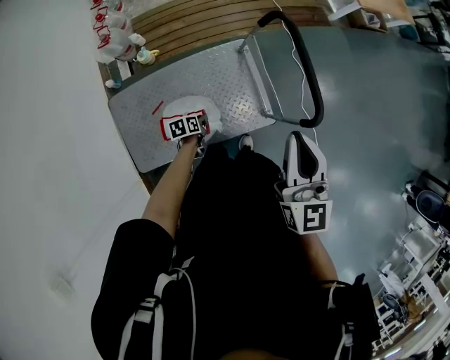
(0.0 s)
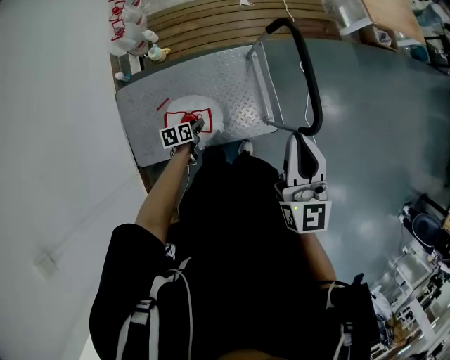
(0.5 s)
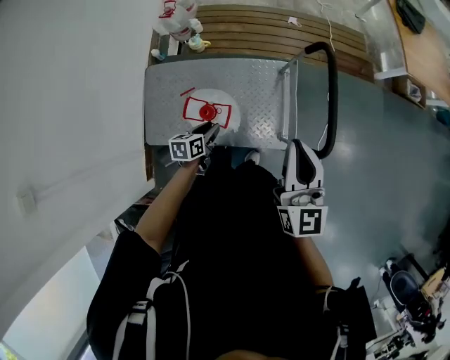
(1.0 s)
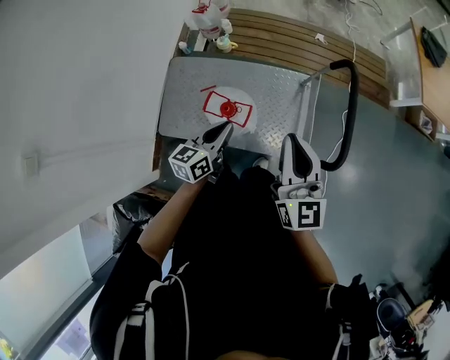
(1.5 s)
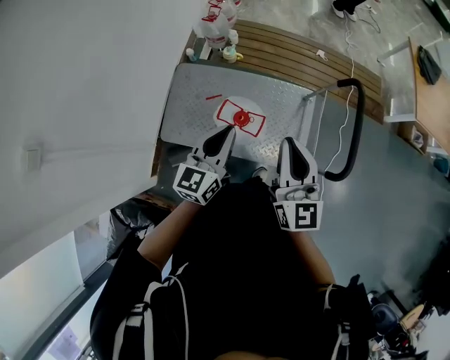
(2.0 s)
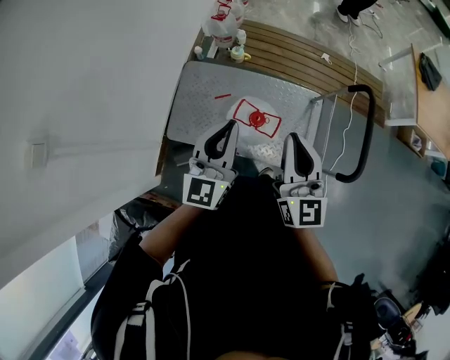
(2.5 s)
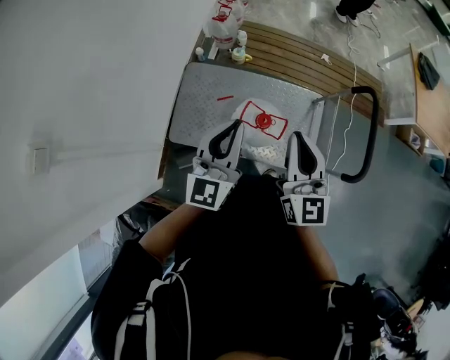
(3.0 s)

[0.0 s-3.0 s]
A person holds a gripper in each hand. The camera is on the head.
0.0 to 1.5 s: The right gripper shifts by roughly 5 cm, and changes its angle by roughly 30 degrees. The left gripper shifts roughly 30 cm upward, and points its fingers approximately 40 degrees further upward.
1.5 to 3.0 s: The right gripper is displaced to the left by approximately 20 cm. The left gripper is displaced to the left and upward by approximately 25 cm, and changes its angle by about 40 degrees.

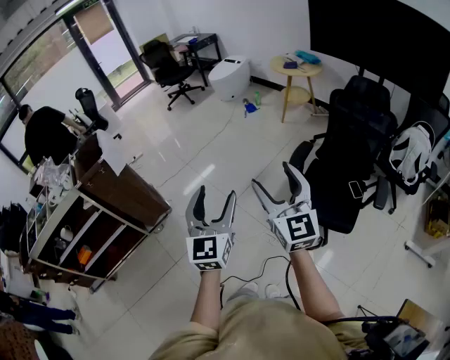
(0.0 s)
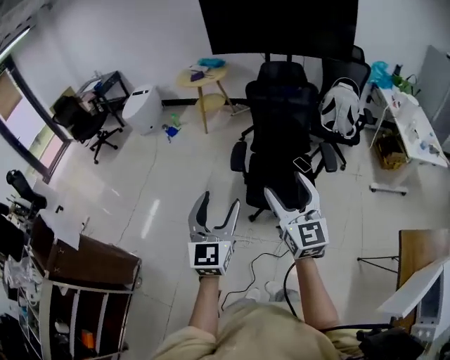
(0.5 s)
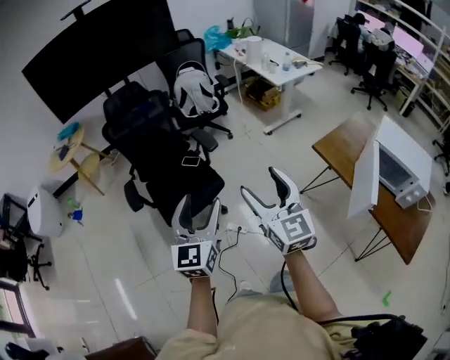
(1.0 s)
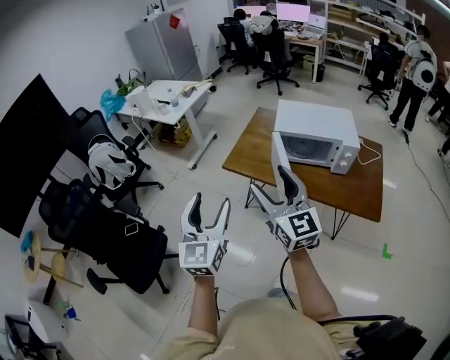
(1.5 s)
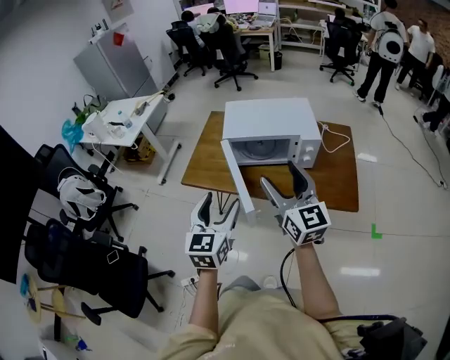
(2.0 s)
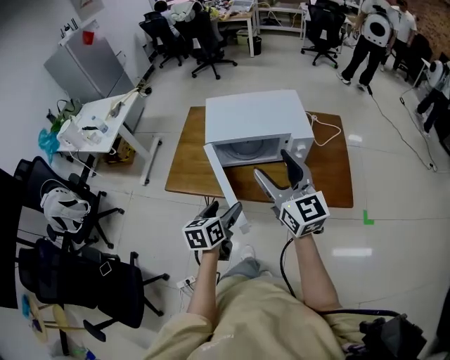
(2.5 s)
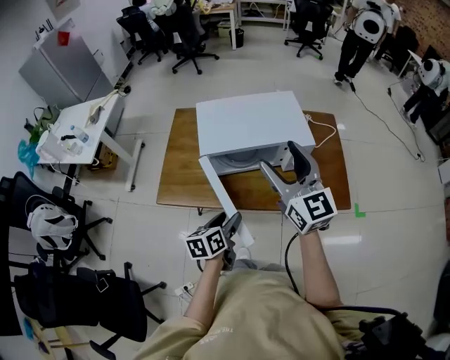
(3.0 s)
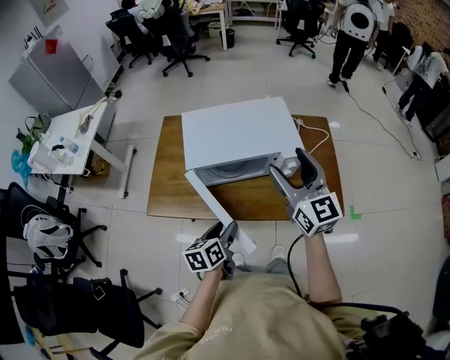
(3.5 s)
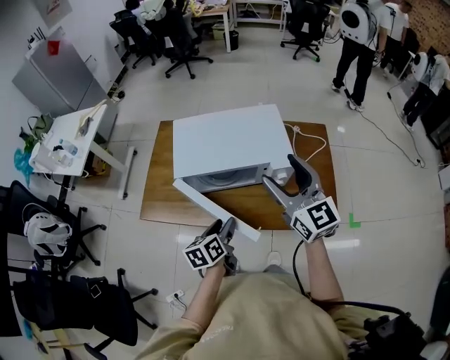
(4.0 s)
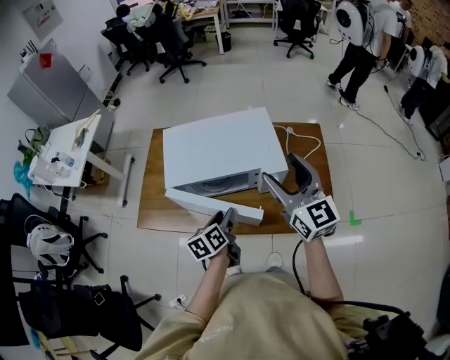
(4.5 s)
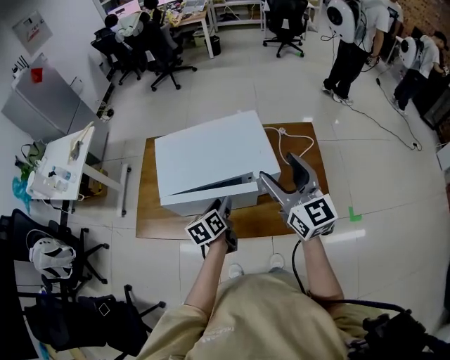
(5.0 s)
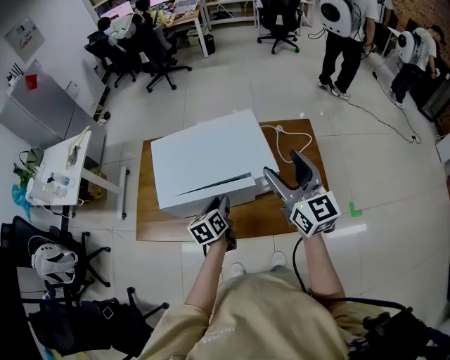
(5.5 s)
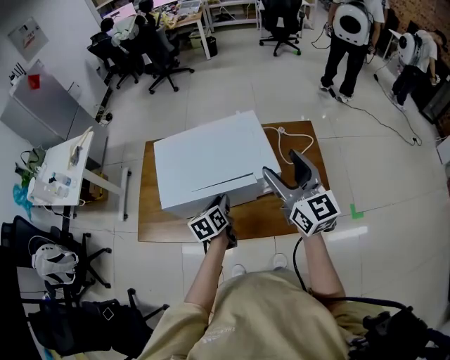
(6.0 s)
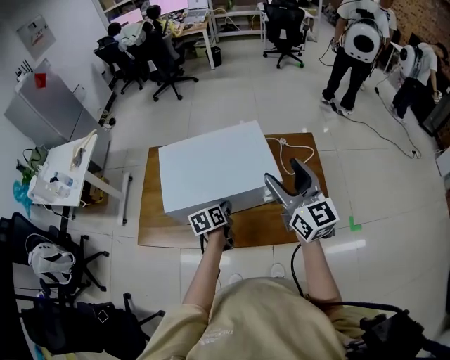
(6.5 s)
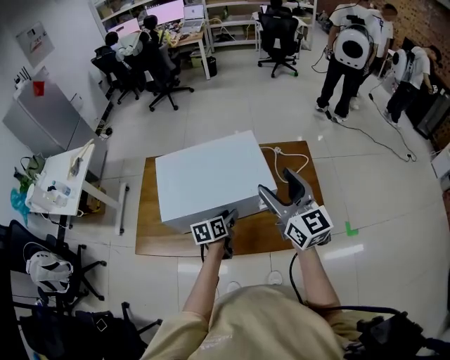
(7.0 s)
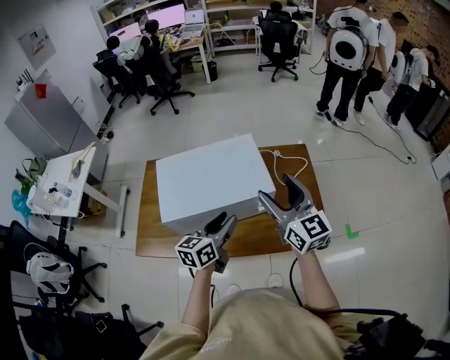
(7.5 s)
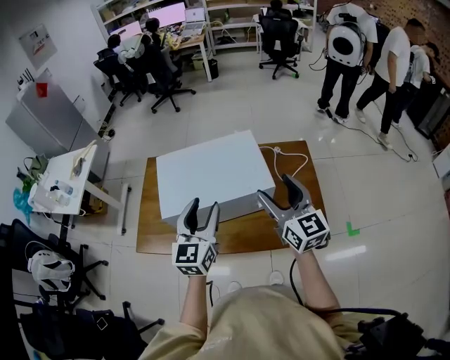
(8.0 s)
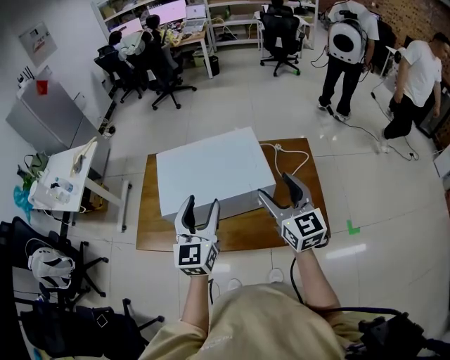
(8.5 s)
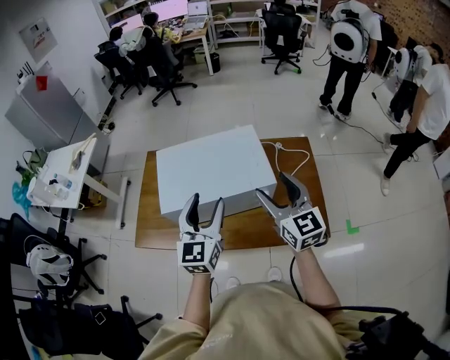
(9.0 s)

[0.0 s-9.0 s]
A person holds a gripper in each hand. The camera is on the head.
0.0 to 2.0 s: The pair of grippers is taken some 80 cm. The left gripper rotates about 110 degrees, while the right gripper swivels about 100 degrees.
2.0 to 4.5 s: The right gripper is displaced forward by some 30 cm. Meanwhile the left gripper moves forward and downward, roughly 40 cm, and rolls counterclockwise, seen from behind, by approximately 40 degrees.
4.5 to 7.0 s: The left gripper shifts about 10 cm forward and downward, and closes and opens again.
7.0 to 9.0 s: The left gripper shifts some 25 cm upward, and angles its fingers upward, by approximately 30 degrees.

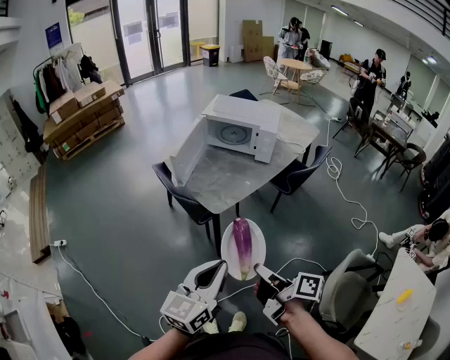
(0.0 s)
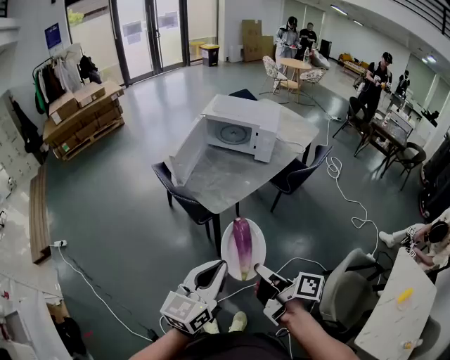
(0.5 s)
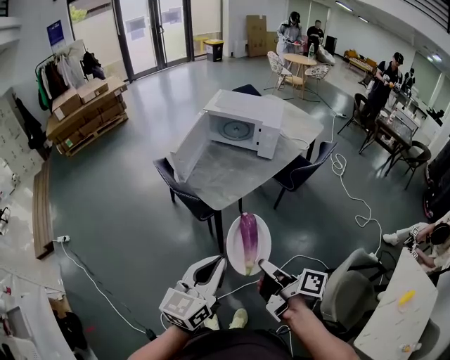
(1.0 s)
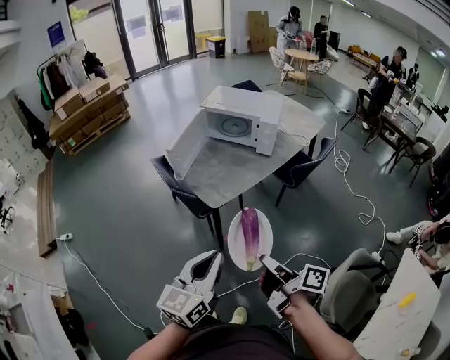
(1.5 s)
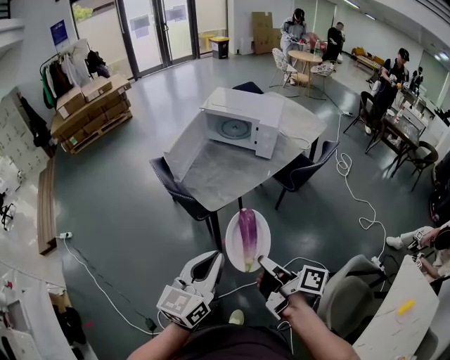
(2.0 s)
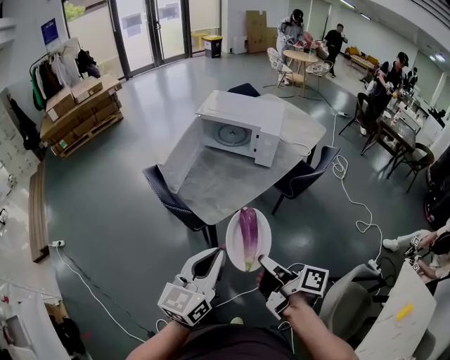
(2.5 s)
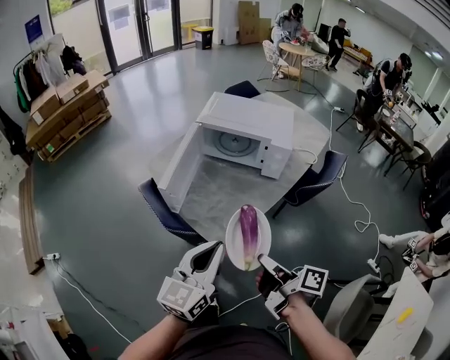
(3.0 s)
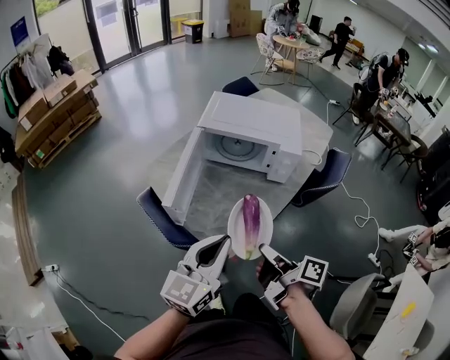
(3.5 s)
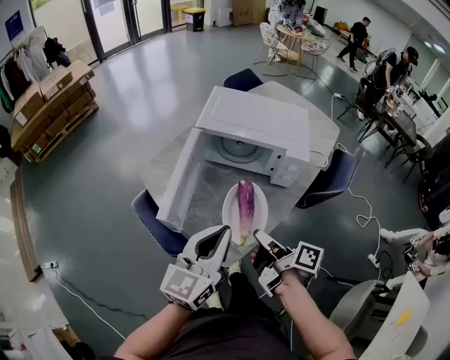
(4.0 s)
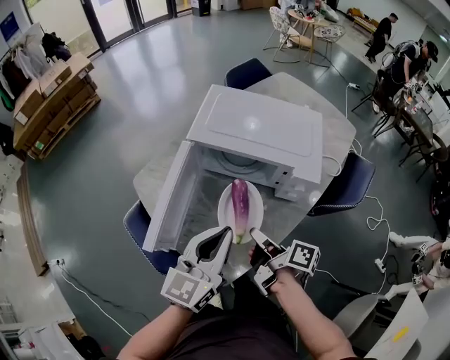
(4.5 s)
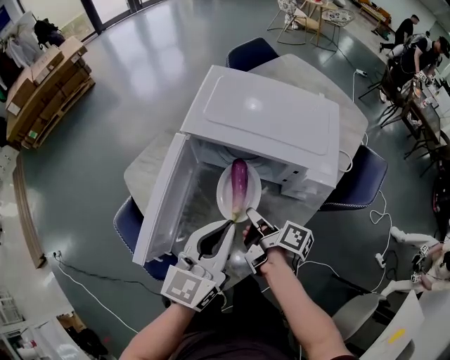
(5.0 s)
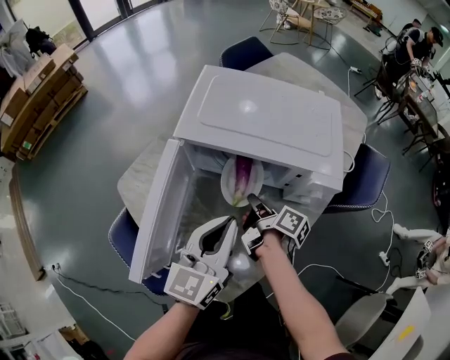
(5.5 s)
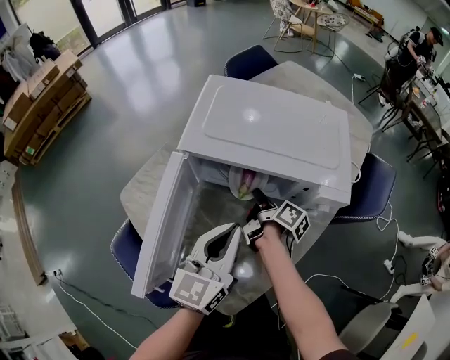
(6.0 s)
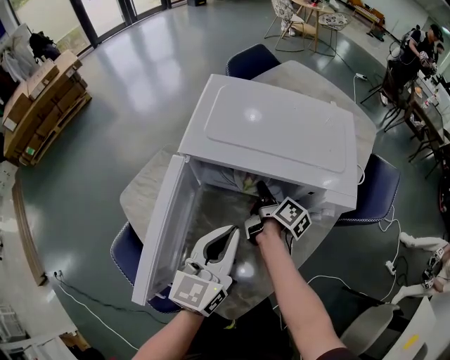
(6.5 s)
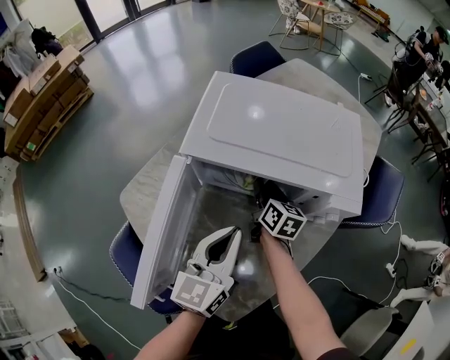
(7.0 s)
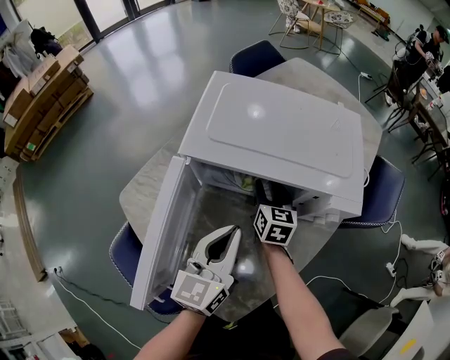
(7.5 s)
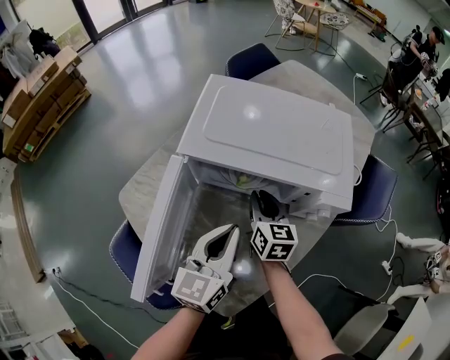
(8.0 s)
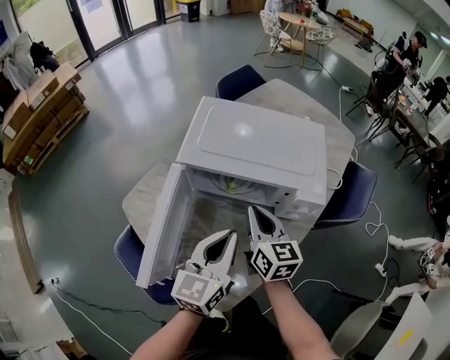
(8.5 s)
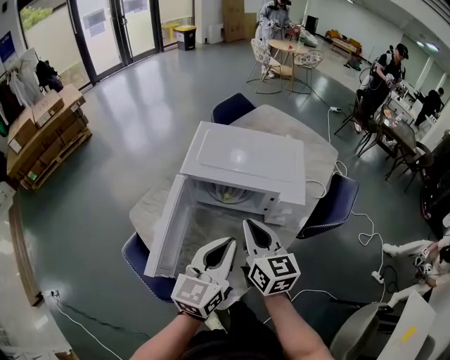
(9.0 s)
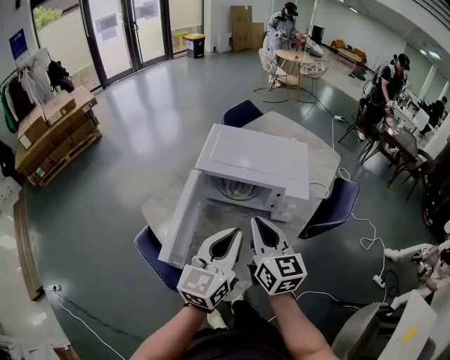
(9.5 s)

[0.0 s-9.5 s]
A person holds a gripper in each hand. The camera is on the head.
0.0 to 2.0 s: The right gripper moves to the right, about 5 cm. Meanwhile the left gripper moves approximately 5 cm.
2.0 to 4.0 s: The pair of grippers is taken forward, approximately 40 cm.
4.0 to 5.5 s: The grippers both shift forward and downward by roughly 25 cm.
5.5 to 7.5 s: The left gripper travels downward by roughly 5 cm. The right gripper shifts about 10 cm forward, rotates around the line of its fingers by some 60 degrees, counterclockwise from behind, and opens up.
7.5 to 9.5 s: The right gripper goes about 40 cm upward and backward, rotates about 20 degrees, and closes up; the left gripper heads upward and backward, covering approximately 25 cm.

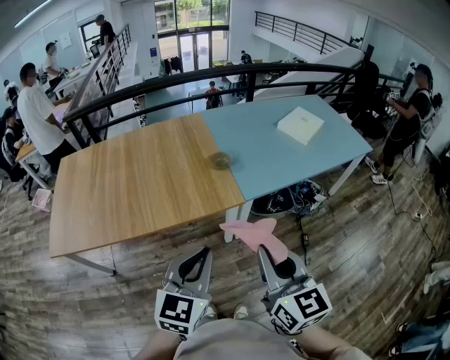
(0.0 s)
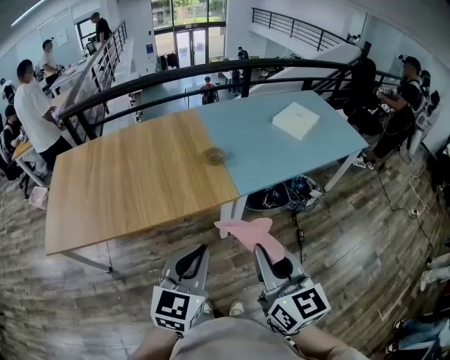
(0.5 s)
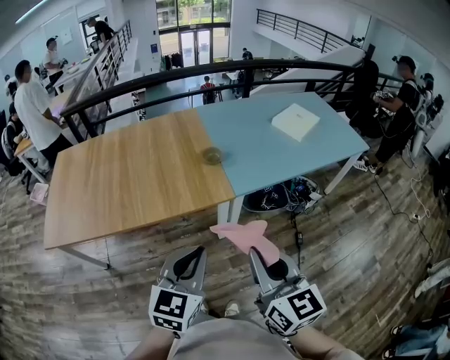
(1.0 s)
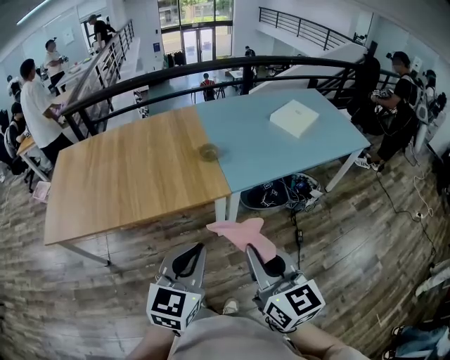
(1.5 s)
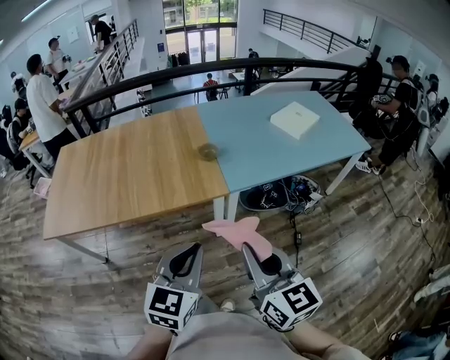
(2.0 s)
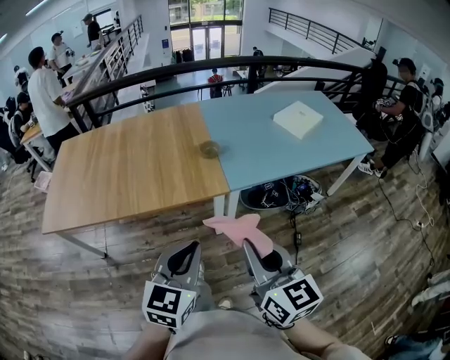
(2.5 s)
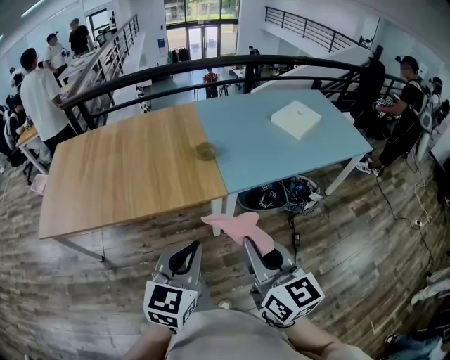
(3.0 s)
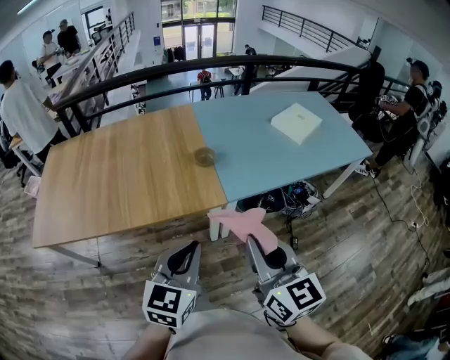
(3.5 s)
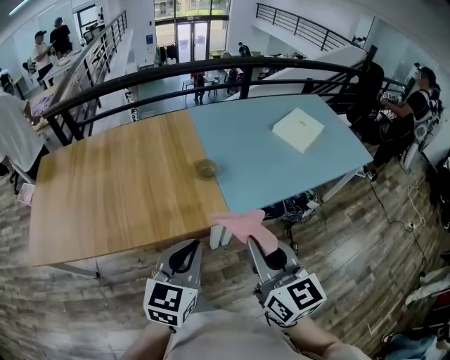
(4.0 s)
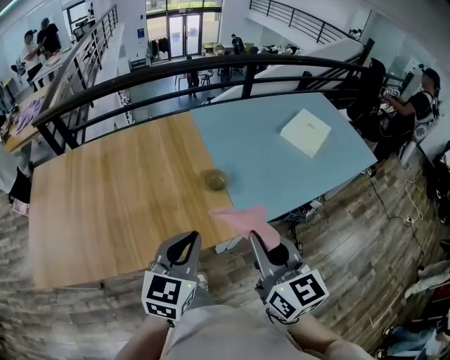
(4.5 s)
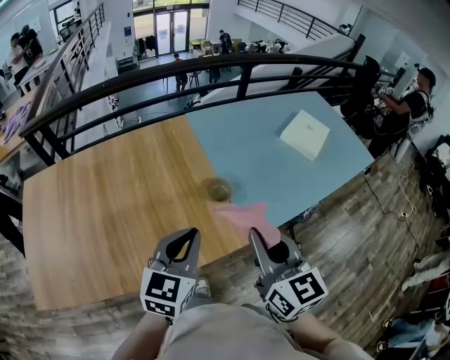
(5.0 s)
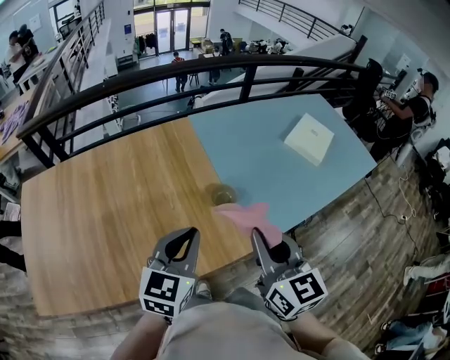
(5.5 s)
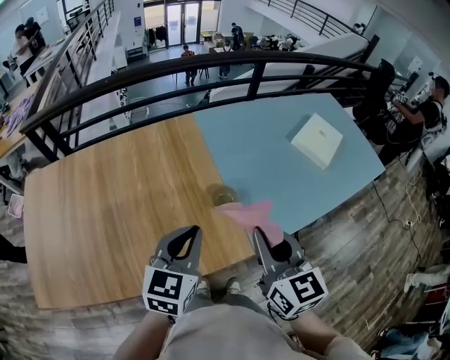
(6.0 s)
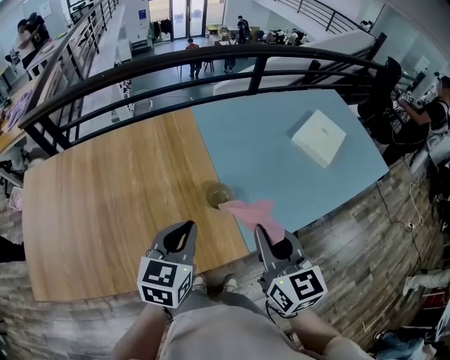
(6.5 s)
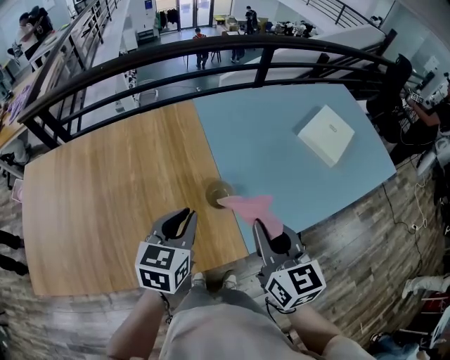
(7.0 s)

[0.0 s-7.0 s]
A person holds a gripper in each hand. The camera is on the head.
0.0 to 2.0 s: Both grippers travel together to the right, approximately 10 cm.
2.0 to 3.5 s: Both grippers travel together forward, some 10 cm.
3.5 to 5.0 s: The two grippers go roughly 35 cm forward and to the left.
5.0 to 7.0 s: The left gripper goes roughly 15 cm forward. The right gripper is displaced forward and downward by about 15 cm.
